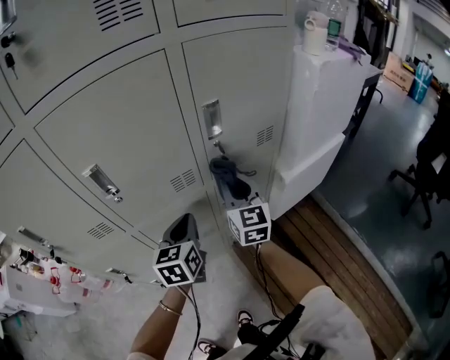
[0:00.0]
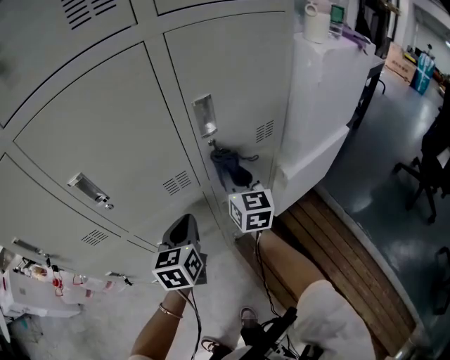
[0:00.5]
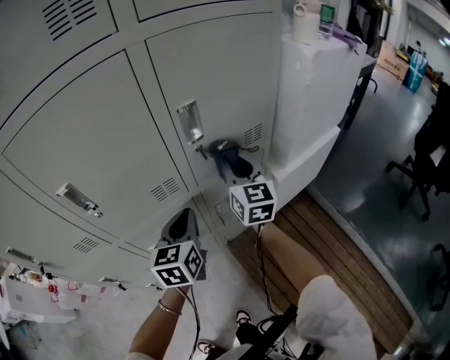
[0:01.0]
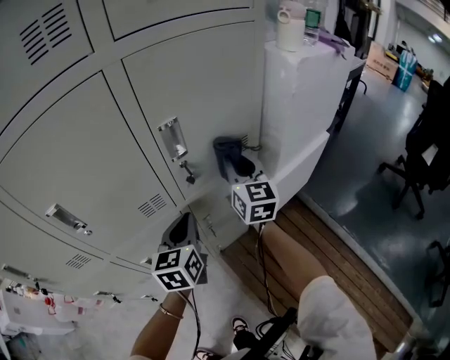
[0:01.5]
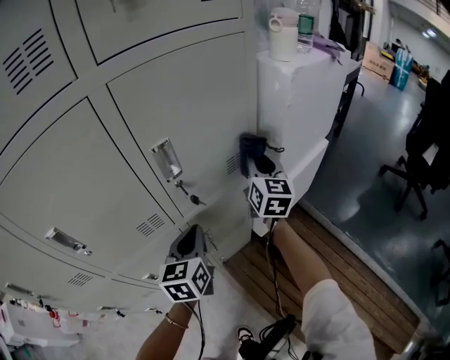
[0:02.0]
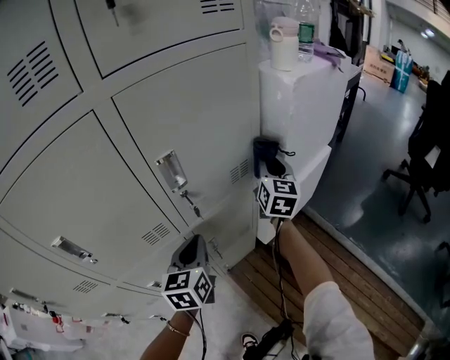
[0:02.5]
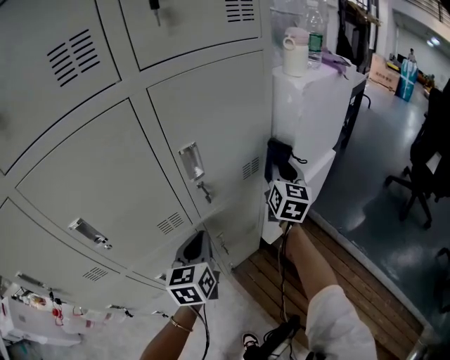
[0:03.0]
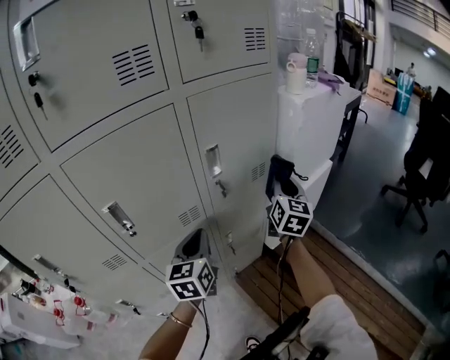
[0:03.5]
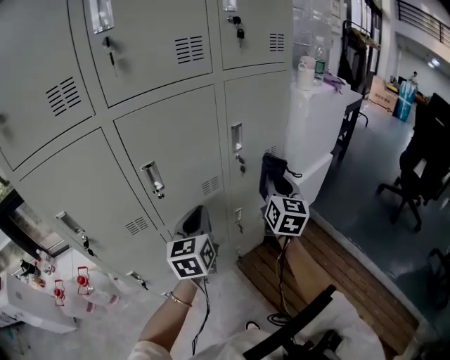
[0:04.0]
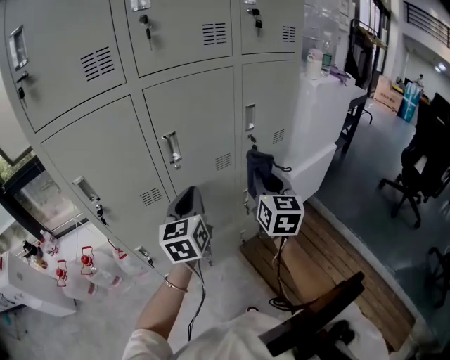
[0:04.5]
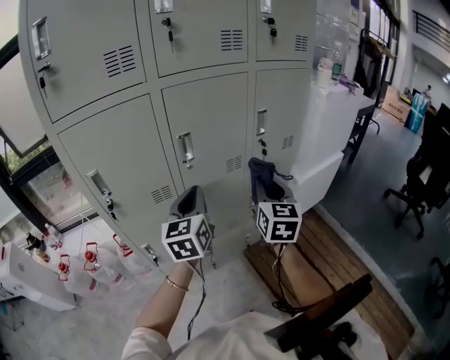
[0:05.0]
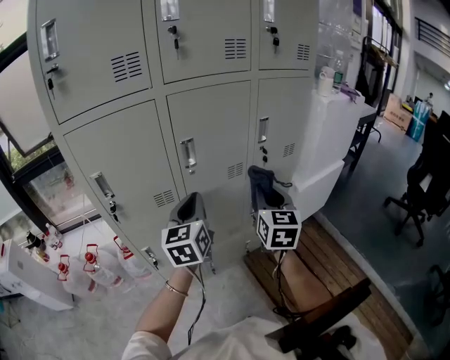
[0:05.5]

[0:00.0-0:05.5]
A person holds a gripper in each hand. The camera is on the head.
0:00.0 to 0:02.0: The left gripper moves to the right and forward, about 15 cm, while the right gripper is displaced to the right and forward by some 25 cm, and changes its angle by approximately 20 degrees.
0:02.0 to 0:03.5: The left gripper goes approximately 10 cm backward, upward and to the left, while the right gripper is displaced backward by approximately 10 cm.
0:03.5 to 0:05.5: The left gripper travels backward, to the left and upward by roughly 25 cm, while the right gripper moves backward and to the left, about 35 cm, and changes its angle by about 20 degrees.

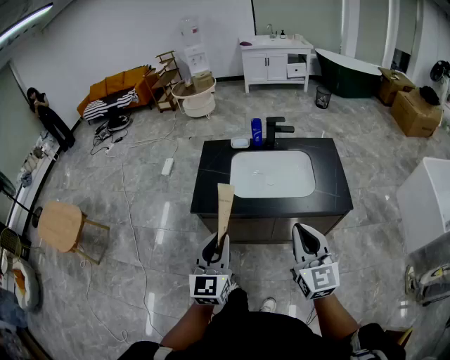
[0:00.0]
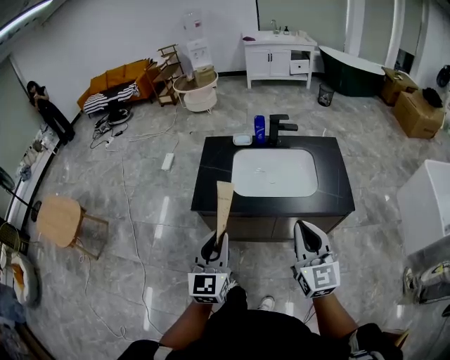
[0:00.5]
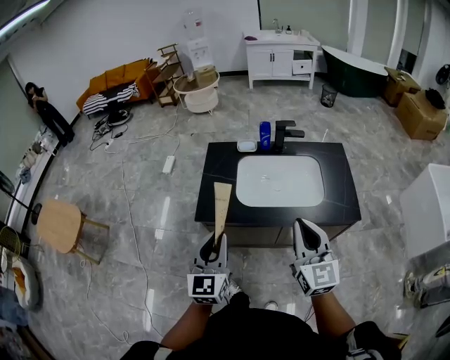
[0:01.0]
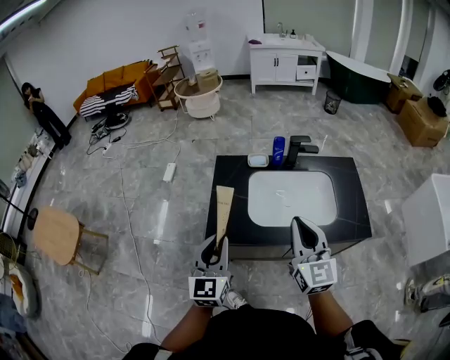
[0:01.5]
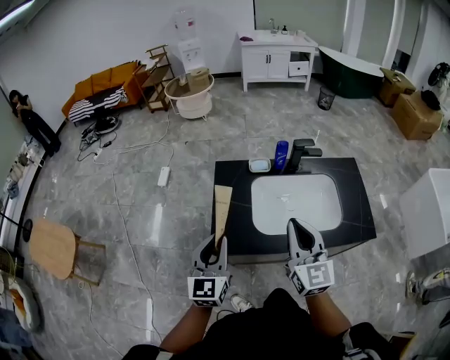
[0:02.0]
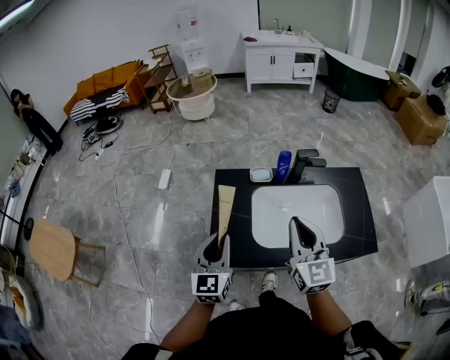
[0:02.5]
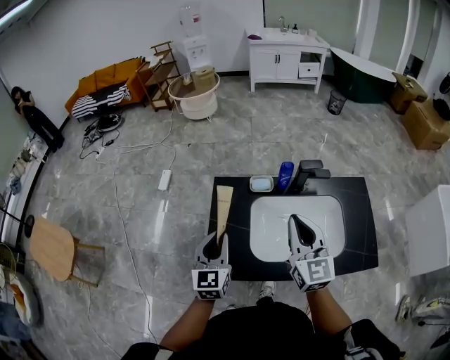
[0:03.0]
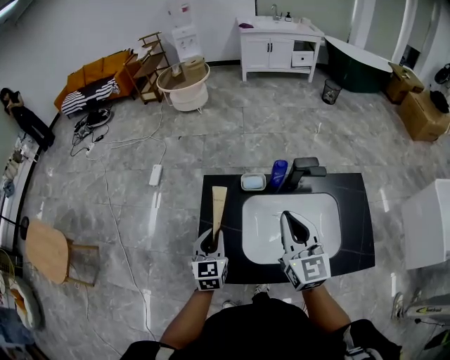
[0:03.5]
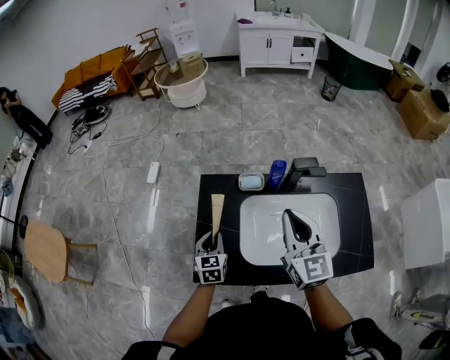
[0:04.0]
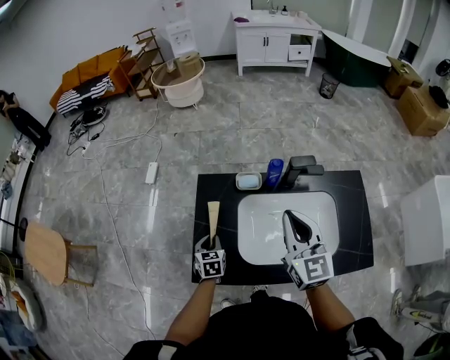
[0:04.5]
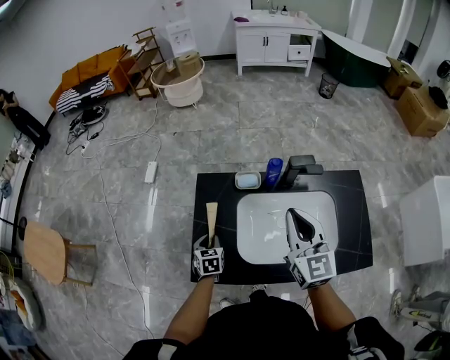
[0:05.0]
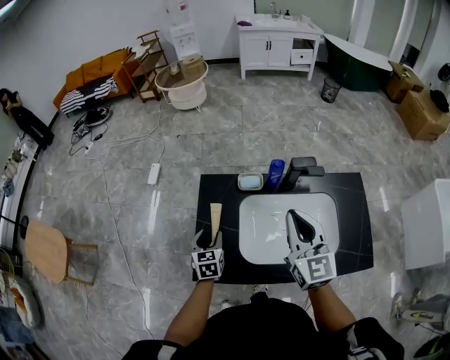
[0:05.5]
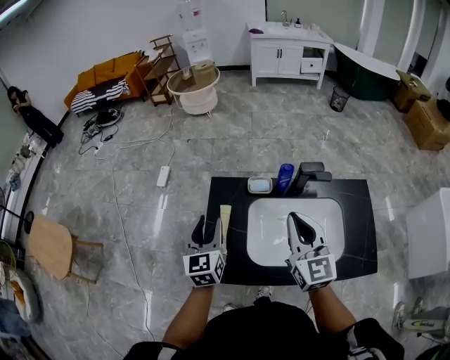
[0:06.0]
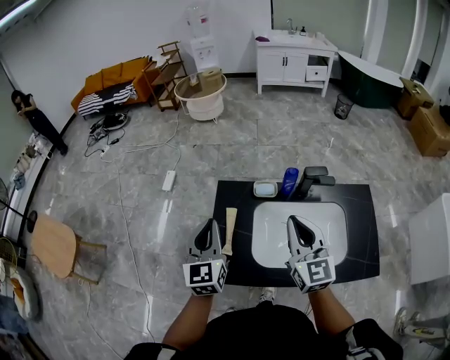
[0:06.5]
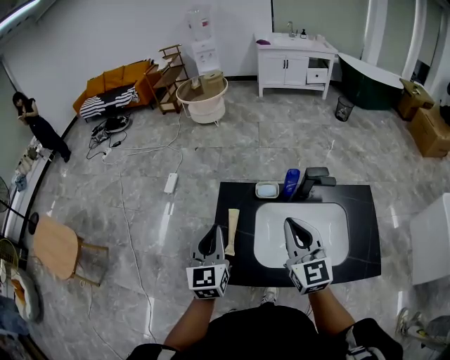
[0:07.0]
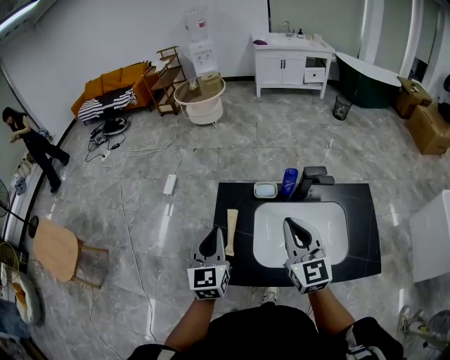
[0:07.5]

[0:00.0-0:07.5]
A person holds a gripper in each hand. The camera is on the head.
0:00.0 to 0:02.0: The grippers both shift forward and to the left by about 25 cm.
0:02.0 to 0:04.0: The left gripper shifts roughly 30 cm downward and forward, and changes its angle by some 30 degrees. The right gripper moves forward, some 20 cm.
0:04.0 to 0:05.5: The left gripper goes downward and returns, about 10 cm each way, and opens up.
0:05.5 to 0:07.5: The left gripper shifts about 20 cm upward, rotates approximately 30 degrees, and closes up, while the right gripper is displaced to the left by approximately 5 cm.

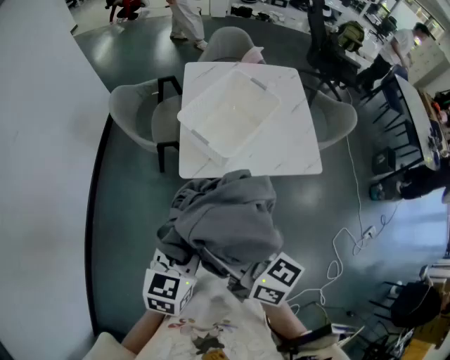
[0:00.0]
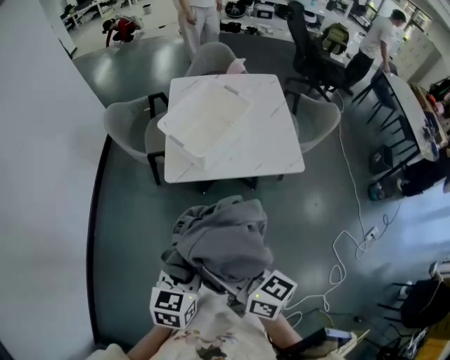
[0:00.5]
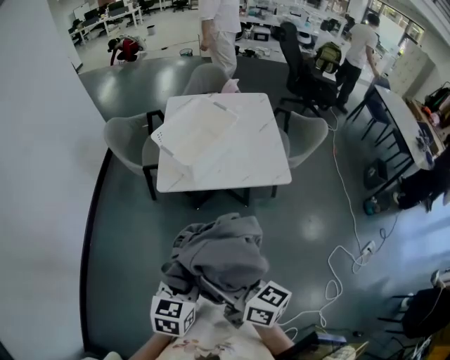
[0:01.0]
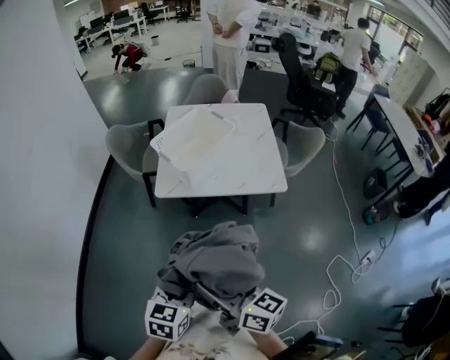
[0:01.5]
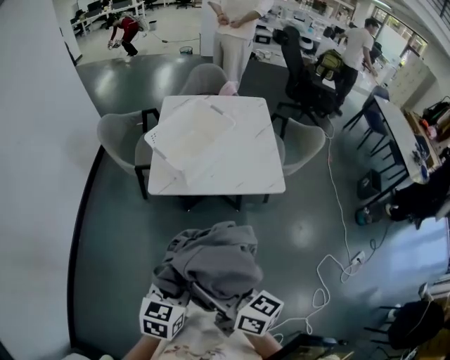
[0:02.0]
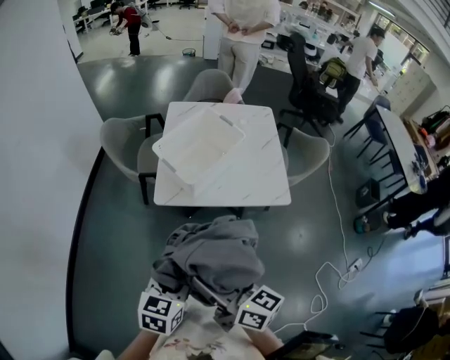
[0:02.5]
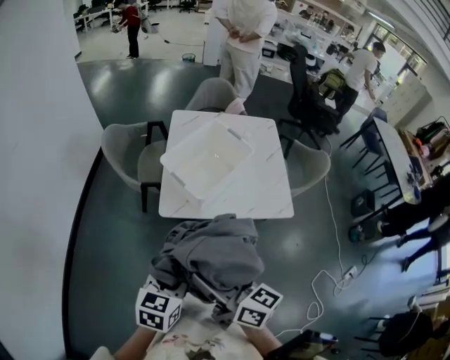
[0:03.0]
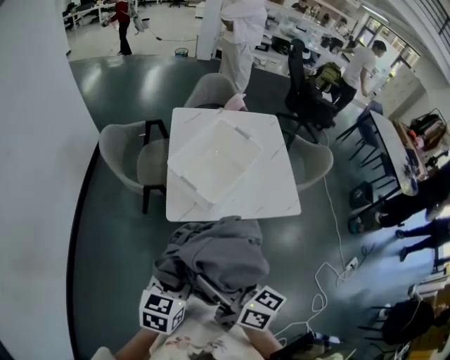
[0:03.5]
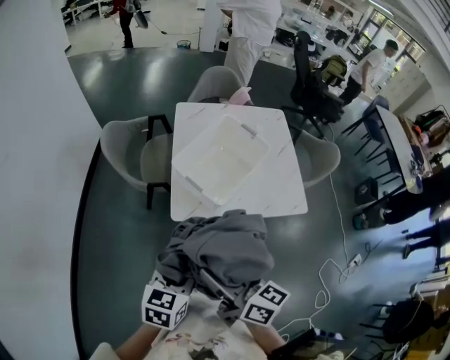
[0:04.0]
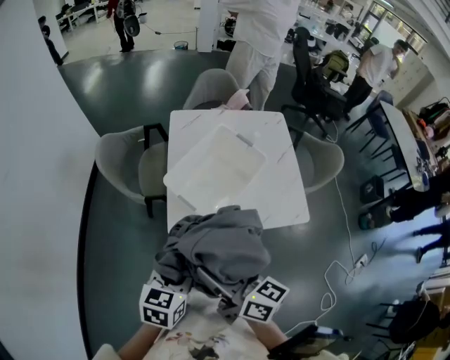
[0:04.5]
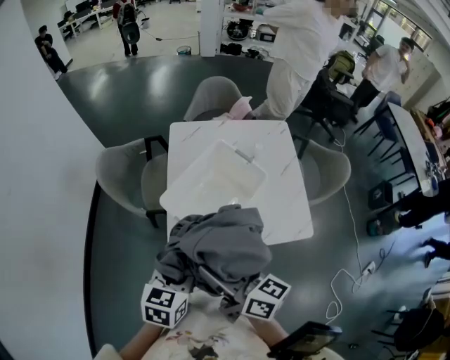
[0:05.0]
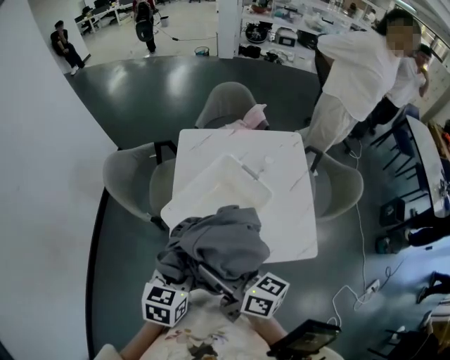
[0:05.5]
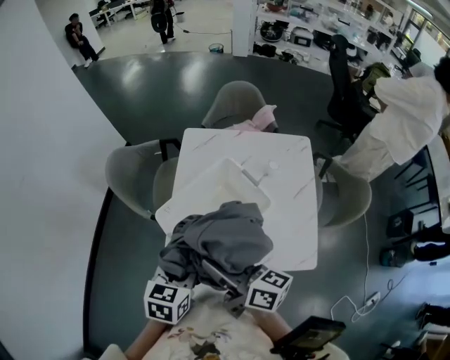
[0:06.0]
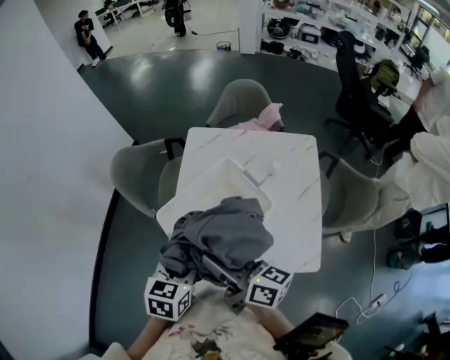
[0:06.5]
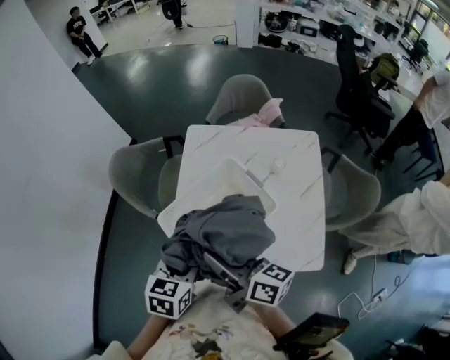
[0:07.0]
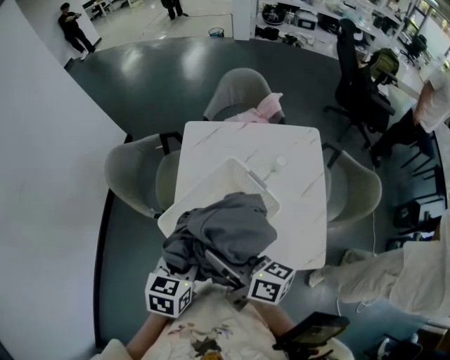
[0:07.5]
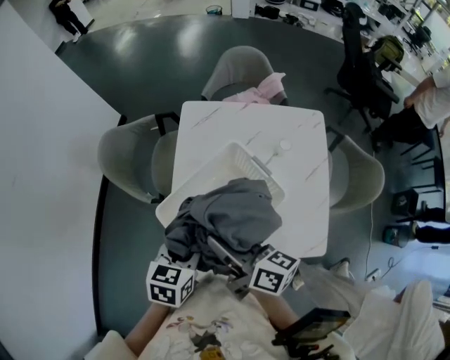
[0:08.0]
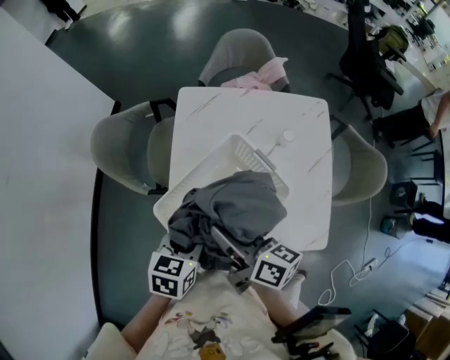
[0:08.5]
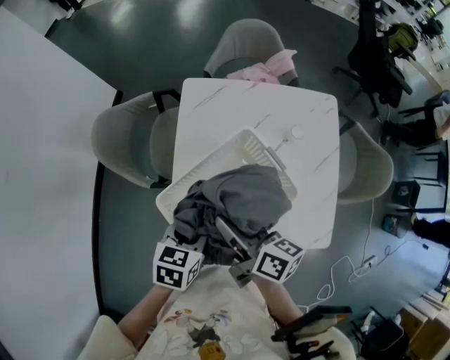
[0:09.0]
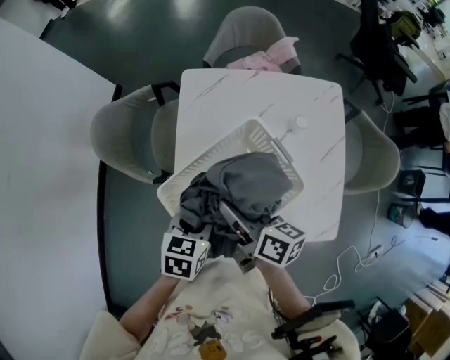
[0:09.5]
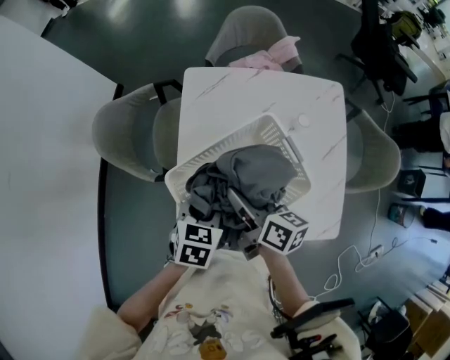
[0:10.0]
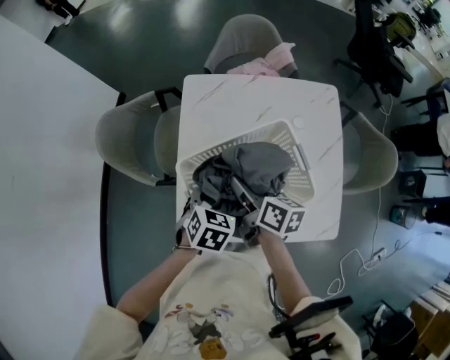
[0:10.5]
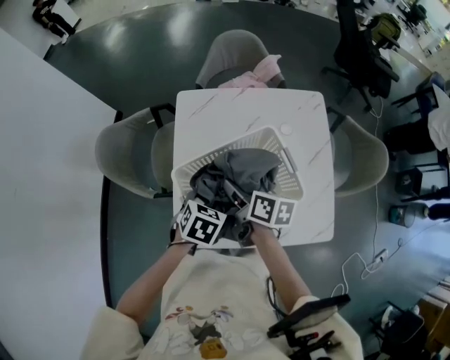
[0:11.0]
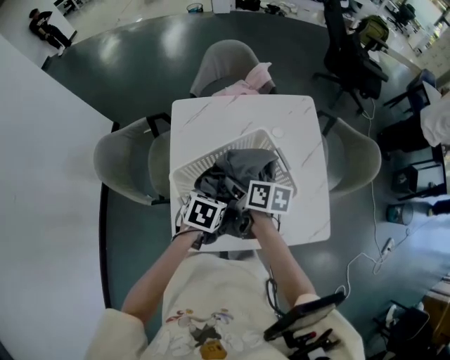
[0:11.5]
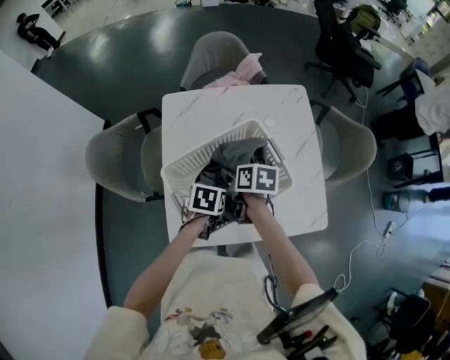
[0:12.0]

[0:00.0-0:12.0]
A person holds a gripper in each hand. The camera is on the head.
0:00.0 to 0:02.0: The grippers both shift backward and to the right by approximately 20 cm.
0:02.0 to 0:04.0: Both grippers travel together forward and to the left, approximately 25 cm.
0:04.0 to 0:06.0: Both grippers move forward and to the right, about 25 cm.
0:06.0 to 0:08.0: The grippers both shift forward by roughly 10 cm.
0:08.0 to 0:10.0: The left gripper travels forward and downward by approximately 10 cm. Meanwhile the right gripper goes approximately 15 cm downward and forward.
0:10.0 to 0:12.0: The grippers both shift downward and to the right by approximately 10 cm. The right gripper swivels about 30 degrees.

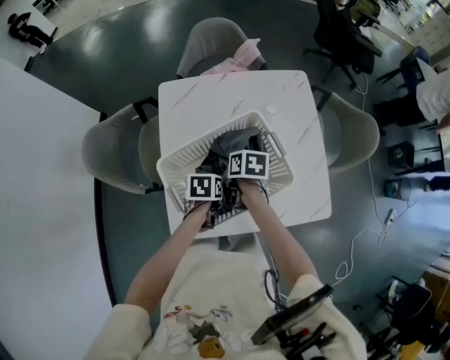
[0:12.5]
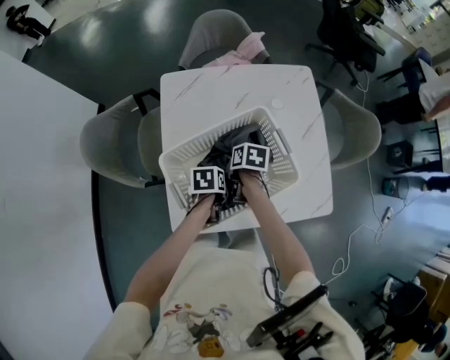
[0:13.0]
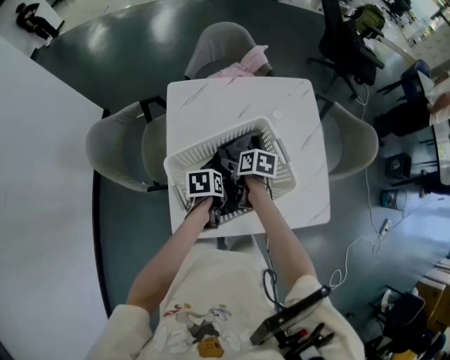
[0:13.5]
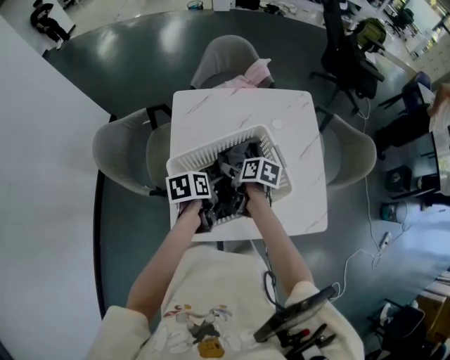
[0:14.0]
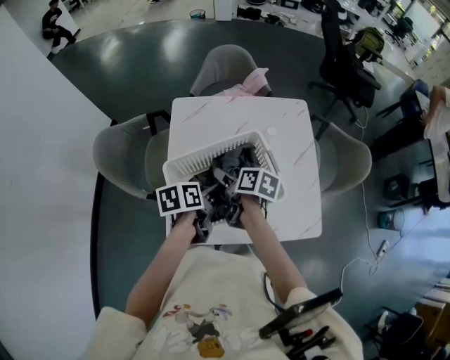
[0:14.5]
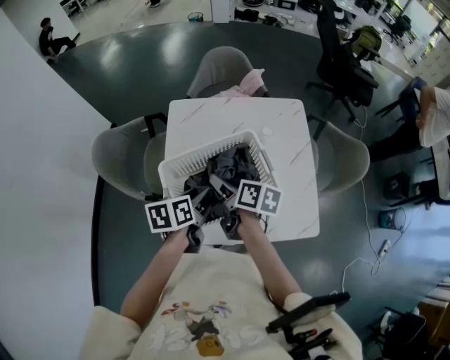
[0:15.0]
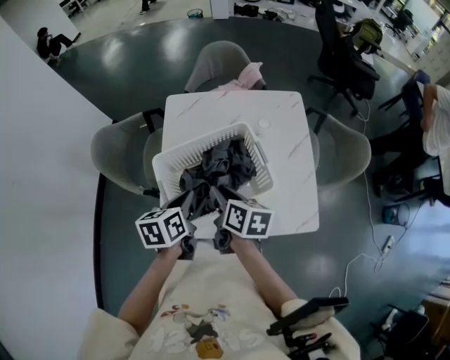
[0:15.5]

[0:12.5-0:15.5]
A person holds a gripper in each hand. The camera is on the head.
0:12.5 to 0:14.0: The right gripper travels downward and back again, some 5 cm each way, and opens. Meanwhile the left gripper shifts about 10 cm upward, swivels some 20 degrees, and opens its fingers.
0:14.0 to 0:15.5: Both grippers travel together upward and backward, about 15 cm. The left gripper turns by approximately 20 degrees, and closes; the right gripper closes its fingers.
